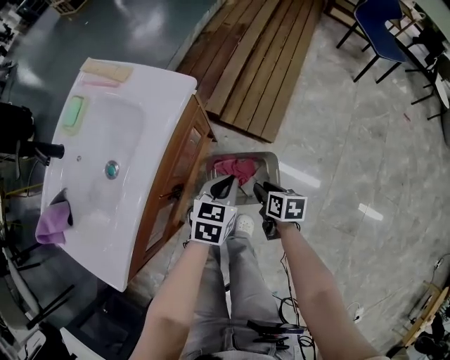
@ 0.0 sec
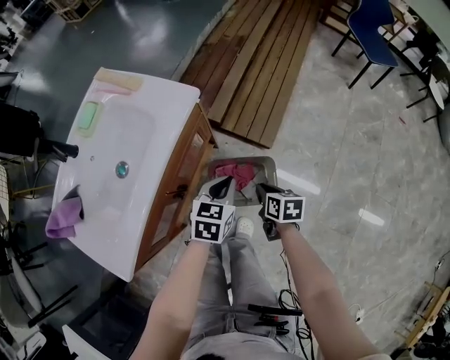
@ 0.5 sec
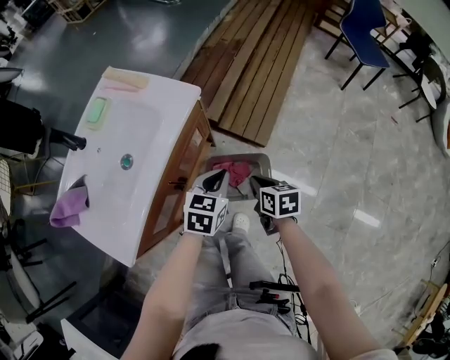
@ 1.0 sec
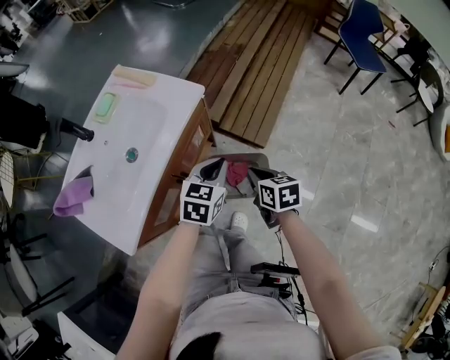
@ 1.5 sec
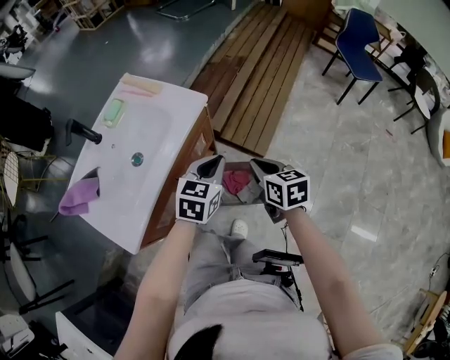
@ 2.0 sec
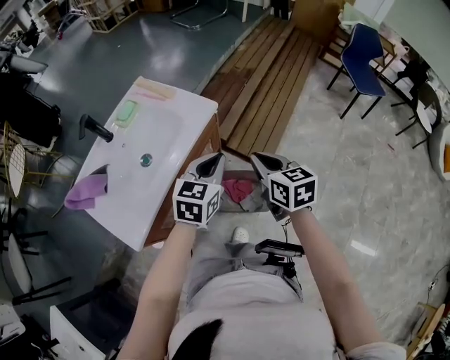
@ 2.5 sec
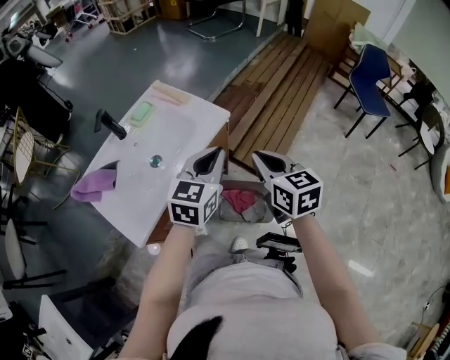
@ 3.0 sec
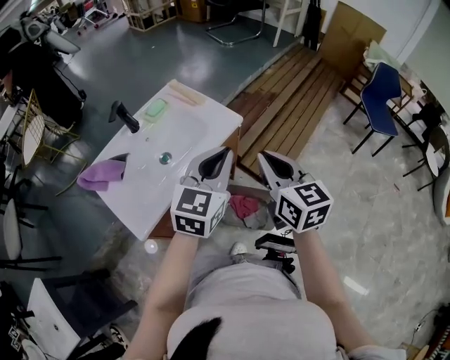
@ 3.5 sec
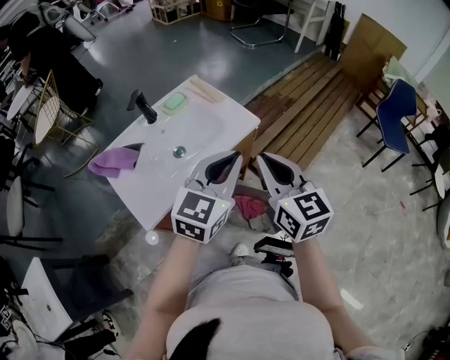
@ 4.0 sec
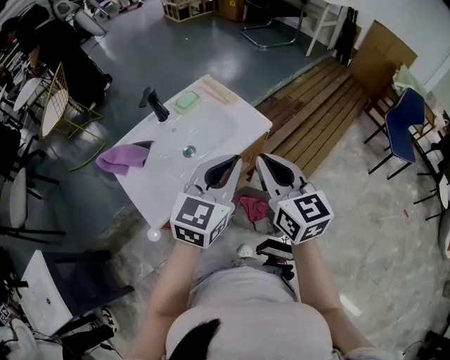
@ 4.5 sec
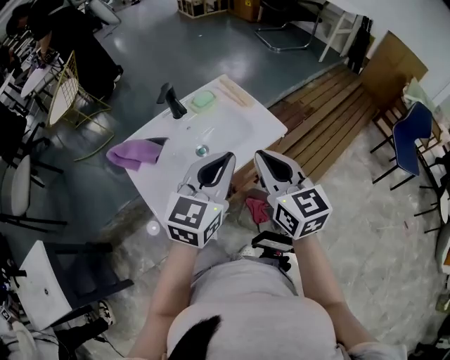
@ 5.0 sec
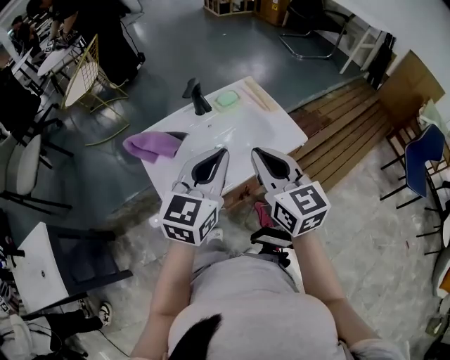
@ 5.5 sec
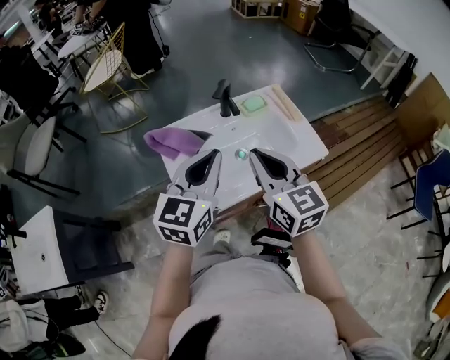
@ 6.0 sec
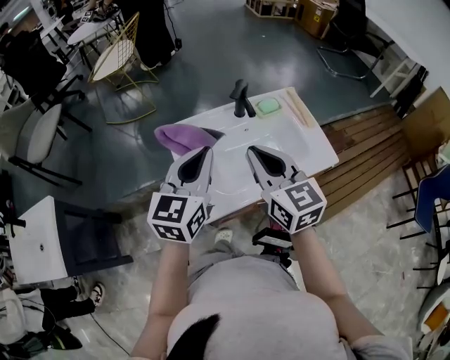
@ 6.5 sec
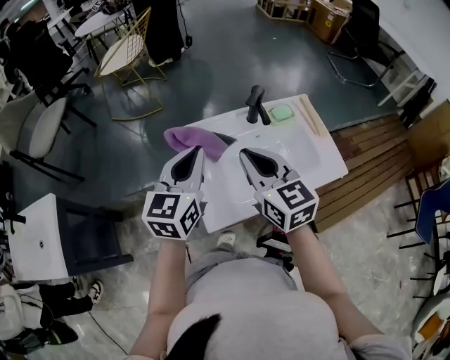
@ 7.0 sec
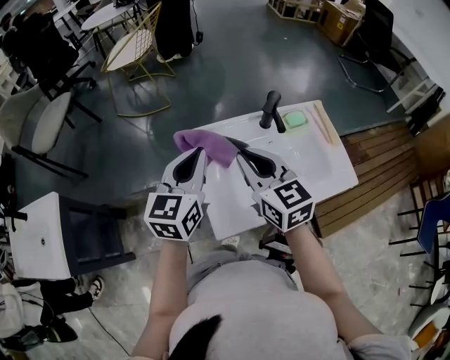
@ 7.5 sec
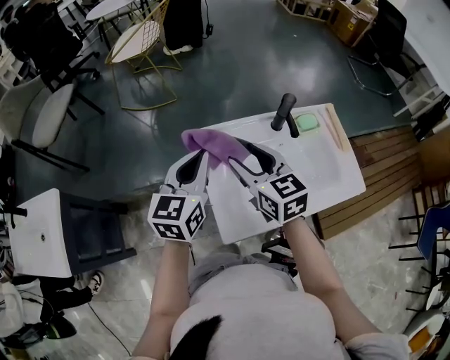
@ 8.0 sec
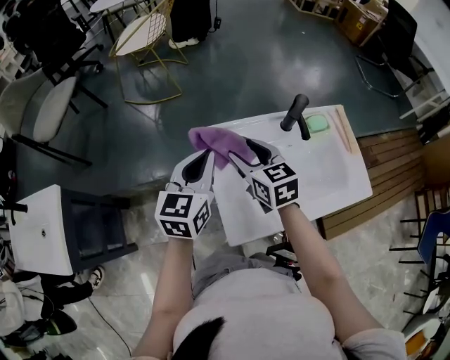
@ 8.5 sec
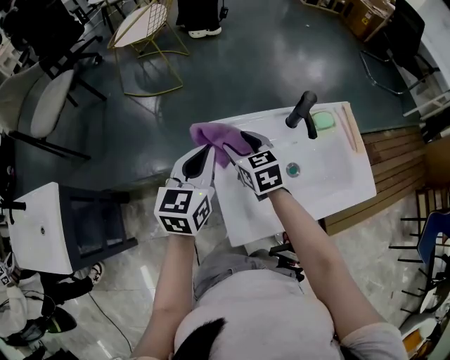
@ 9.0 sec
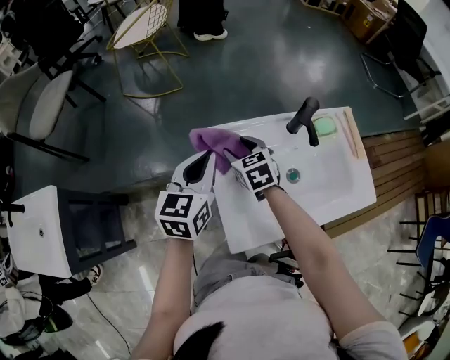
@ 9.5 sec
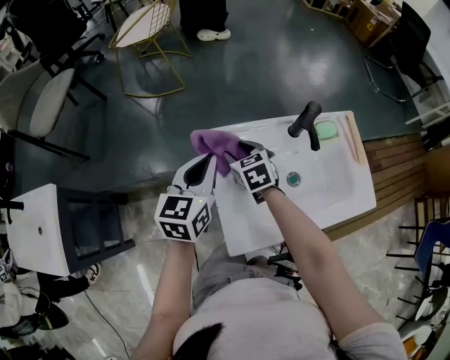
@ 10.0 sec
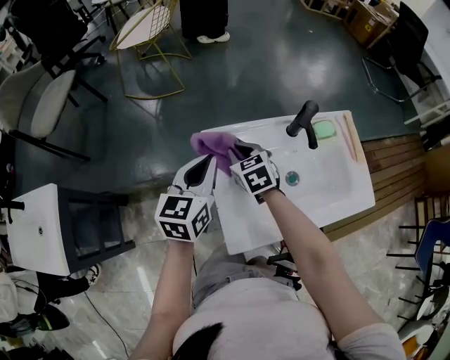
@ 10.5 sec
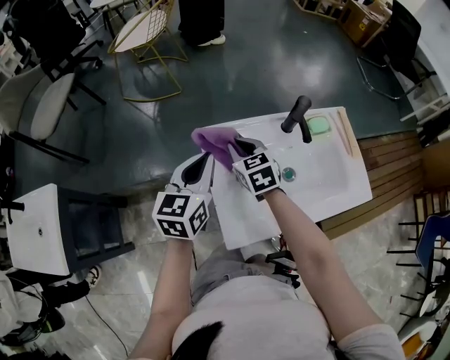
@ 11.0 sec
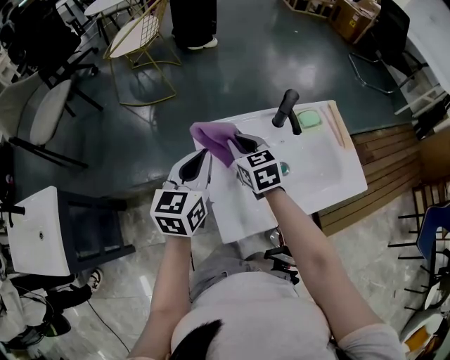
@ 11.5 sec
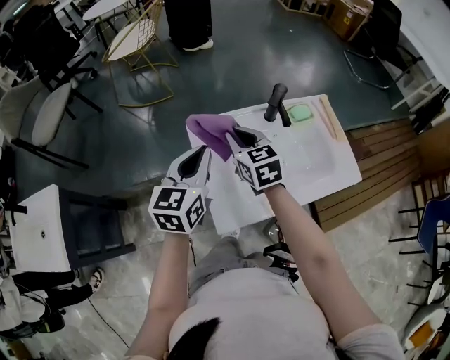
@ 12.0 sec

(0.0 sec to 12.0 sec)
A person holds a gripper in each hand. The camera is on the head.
0.0 sec - 2.0 sec: The two grippers go roughly 25 cm upward. The right gripper changes its angle by approximately 30 degrees, and closes.
2.0 sec - 4.0 sec: Both grippers travel together upward and to the left, approximately 20 cm. The left gripper turns by about 30 degrees. The right gripper changes its angle by approximately 40 degrees.
4.0 sec - 6.0 sec: The right gripper moves some 25 cm, and swivels roughly 20 degrees, while the left gripper moves approximately 25 cm, and rotates about 30 degrees.
6.0 sec - 8.0 sec: The right gripper travels to the left, forward and downward by approximately 25 cm, and opens up, while the left gripper is displaced to the left and forward by approximately 20 cm.
8.0 sec - 10.0 sec: The right gripper shifts approximately 20 cm downward and forward, and swivels some 20 degrees; the left gripper goes roughly 5 cm downward.
10.0 sec - 12.0 sec: The right gripper moves upward and backward, roughly 15 cm, and closes its fingers. The left gripper moves backward and upward, approximately 10 cm.

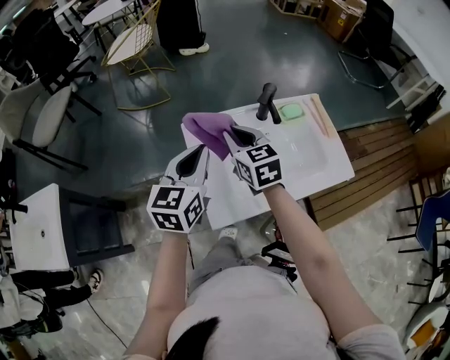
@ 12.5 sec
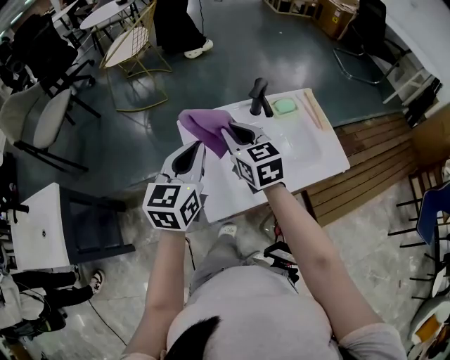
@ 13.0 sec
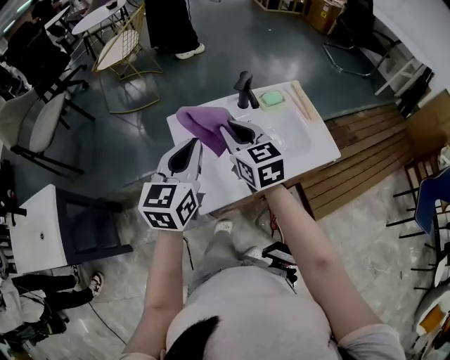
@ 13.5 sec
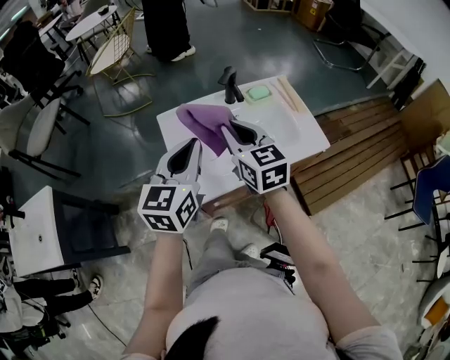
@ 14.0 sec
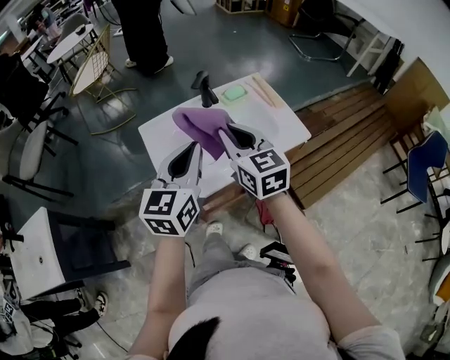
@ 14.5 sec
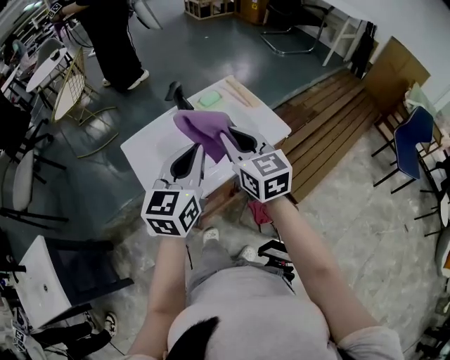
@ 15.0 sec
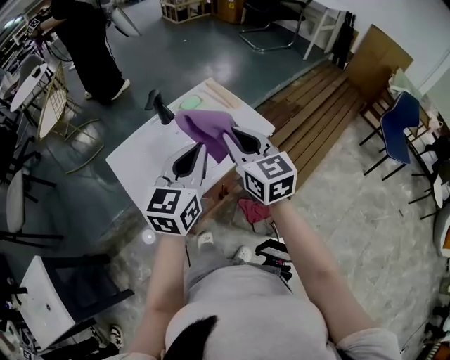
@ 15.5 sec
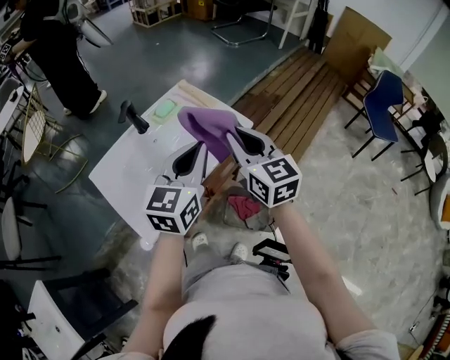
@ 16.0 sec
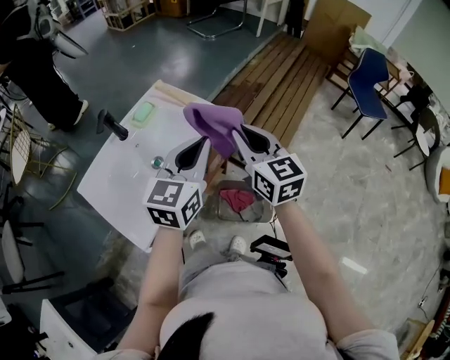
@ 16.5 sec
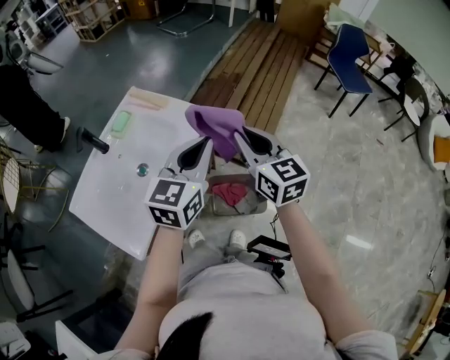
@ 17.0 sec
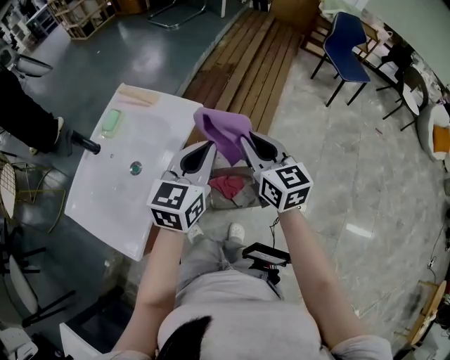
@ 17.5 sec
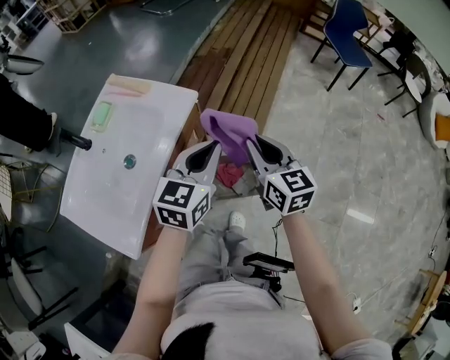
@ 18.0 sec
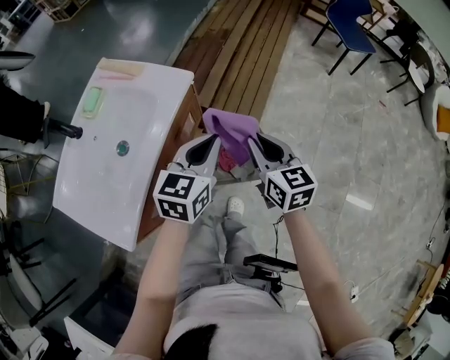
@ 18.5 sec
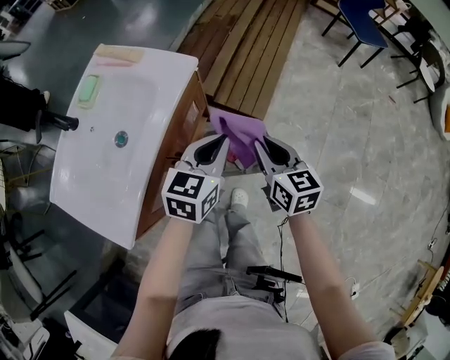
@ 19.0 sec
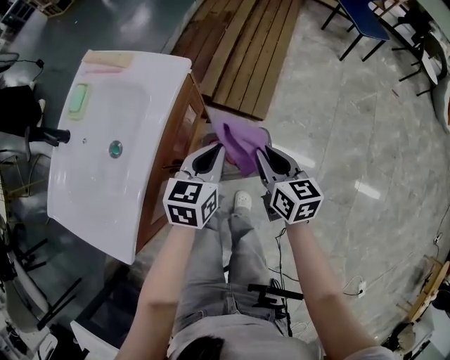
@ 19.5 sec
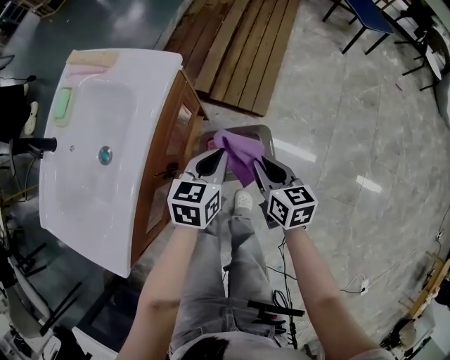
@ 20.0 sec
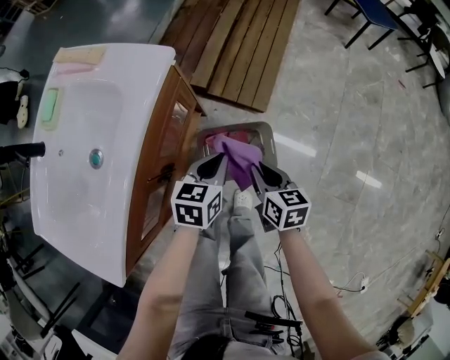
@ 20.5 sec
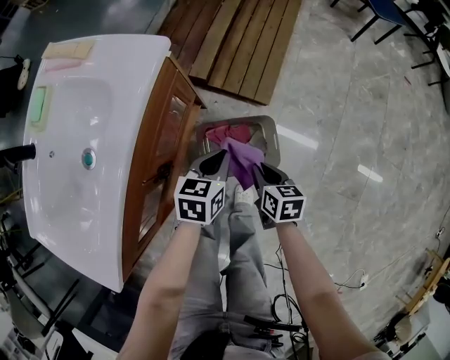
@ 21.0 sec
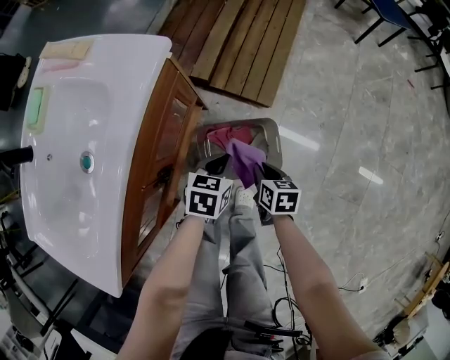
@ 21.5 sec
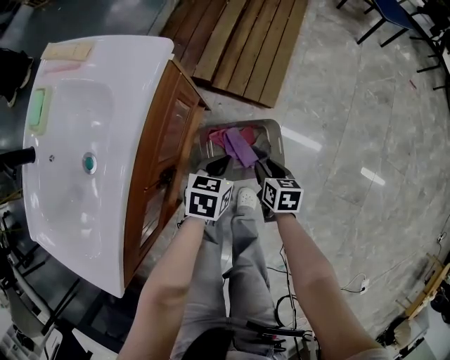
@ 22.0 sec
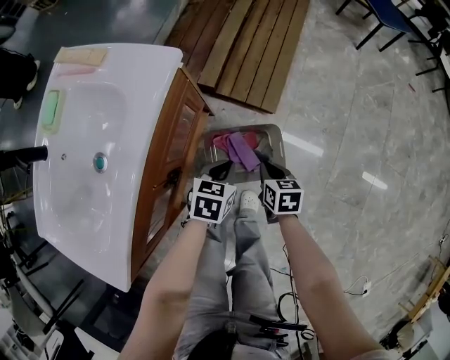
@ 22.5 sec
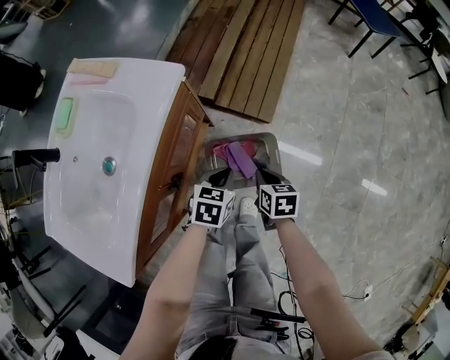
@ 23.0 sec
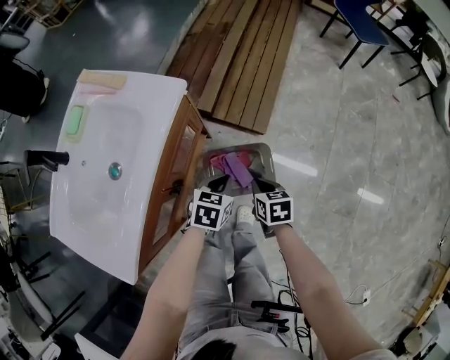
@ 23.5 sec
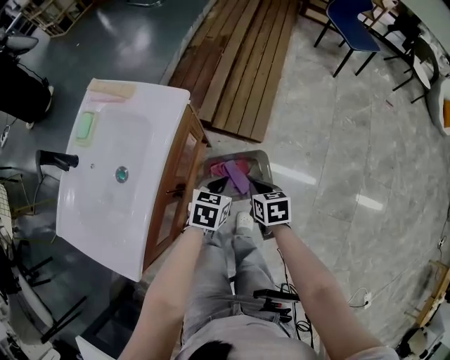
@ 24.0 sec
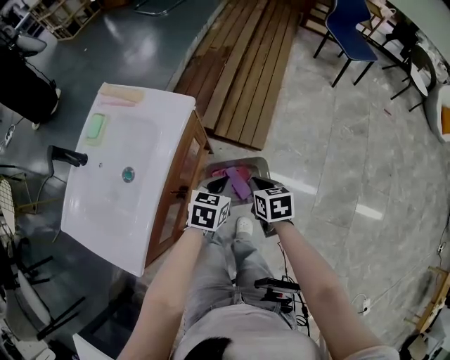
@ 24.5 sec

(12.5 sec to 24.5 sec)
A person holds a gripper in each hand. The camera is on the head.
12.5 sec - 14.5 sec: The right gripper heads to the right, backward and upward, covering some 20 cm. The left gripper shifts approximately 15 cm to the right and backward.
14.5 sec - 16.5 sec: The left gripper shifts by about 25 cm, and changes its angle by about 30 degrees. Meanwhile the right gripper ends up some 25 cm from where it was, and rotates approximately 30 degrees.
16.5 sec - 18.5 sec: The grippers both shift downward and to the right by some 20 cm. The left gripper swivels some 20 degrees, while the right gripper swivels about 20 degrees.
18.5 sec - 20.5 sec: Both grippers travel together downward, roughly 25 cm. The left gripper turns by approximately 20 degrees, while the right gripper turns by approximately 20 degrees.
20.5 sec - 22.5 sec: The grippers both shift downward by some 10 cm.
22.5 sec - 24.5 sec: The grippers both shift upward by about 15 cm.

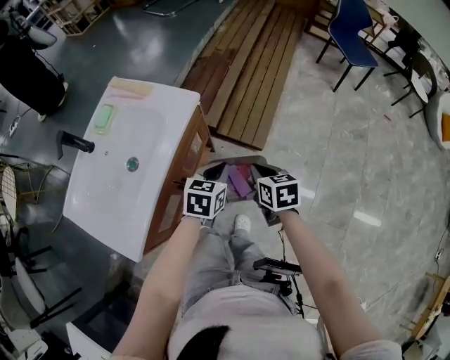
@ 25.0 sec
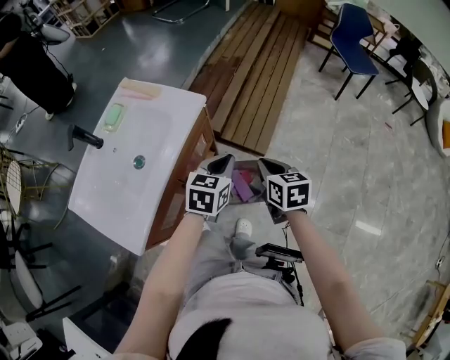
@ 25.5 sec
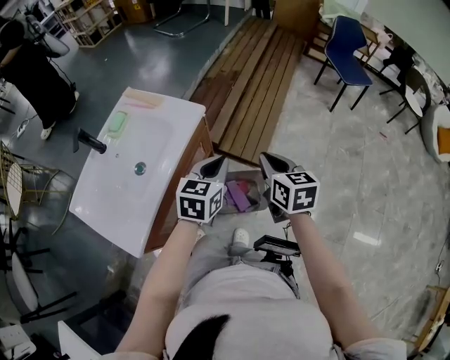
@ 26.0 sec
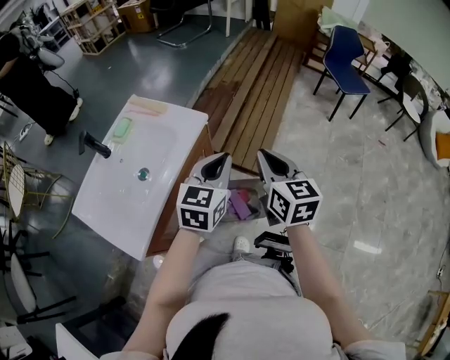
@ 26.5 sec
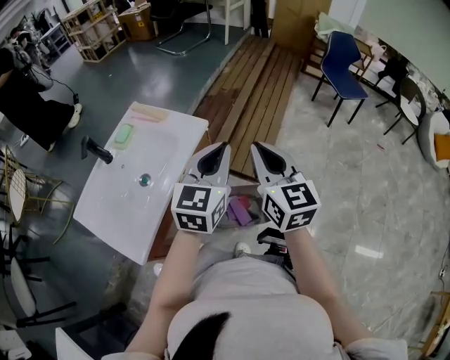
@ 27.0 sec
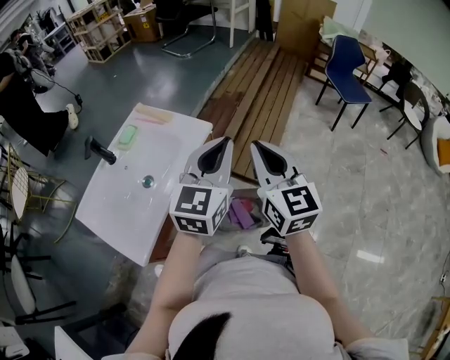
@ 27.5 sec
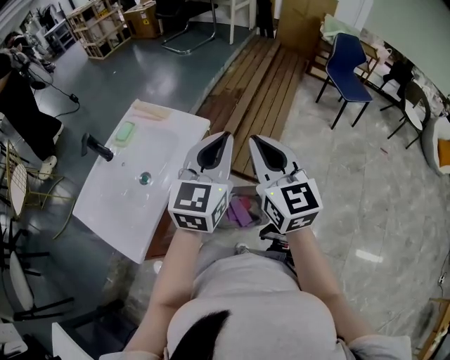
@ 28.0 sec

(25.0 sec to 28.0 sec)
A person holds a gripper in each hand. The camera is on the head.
25.0 sec - 26.5 sec: The grippers both shift upward by some 20 cm. The right gripper swivels approximately 30 degrees, while the left gripper turns by roughly 30 degrees.
26.5 sec - 28.0 sec: Both grippers travel together upward, roughly 10 cm. The right gripper turns by approximately 20 degrees.
